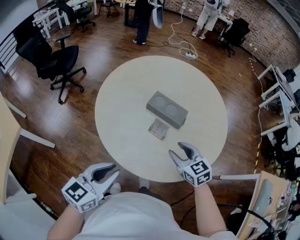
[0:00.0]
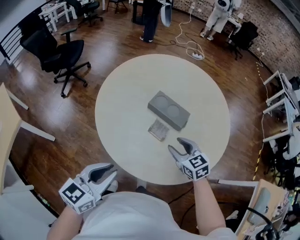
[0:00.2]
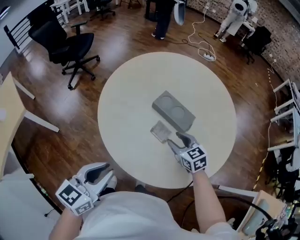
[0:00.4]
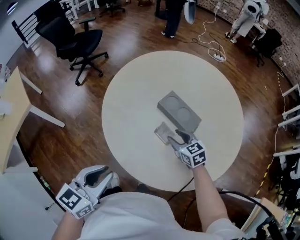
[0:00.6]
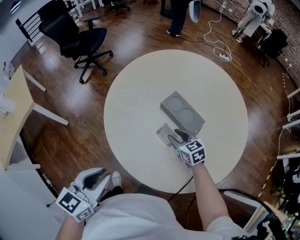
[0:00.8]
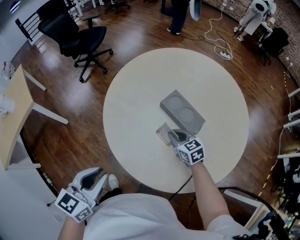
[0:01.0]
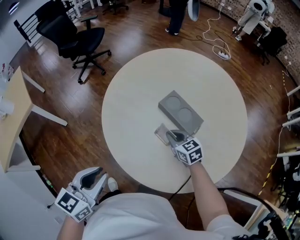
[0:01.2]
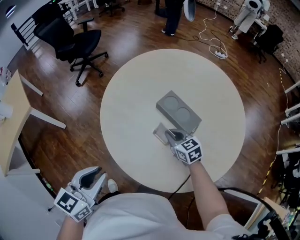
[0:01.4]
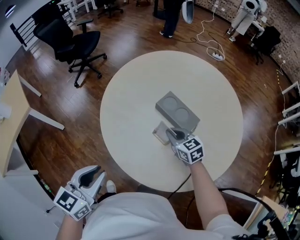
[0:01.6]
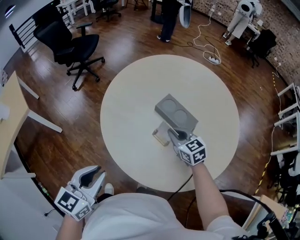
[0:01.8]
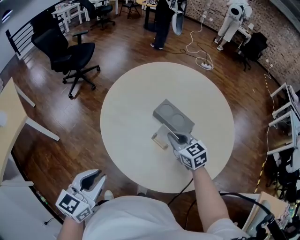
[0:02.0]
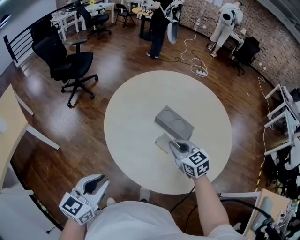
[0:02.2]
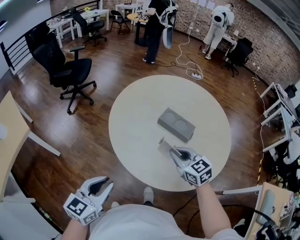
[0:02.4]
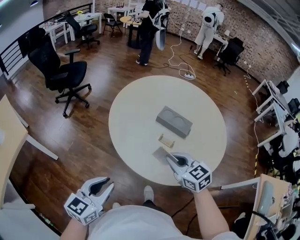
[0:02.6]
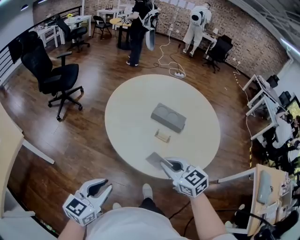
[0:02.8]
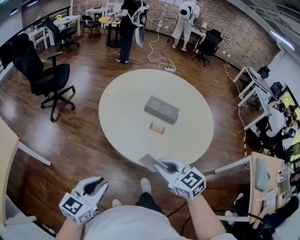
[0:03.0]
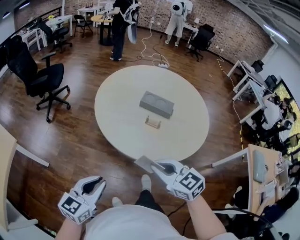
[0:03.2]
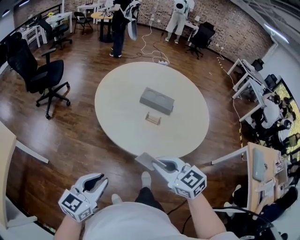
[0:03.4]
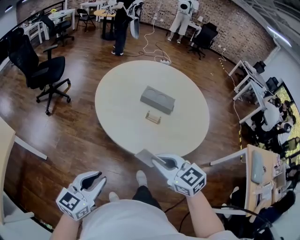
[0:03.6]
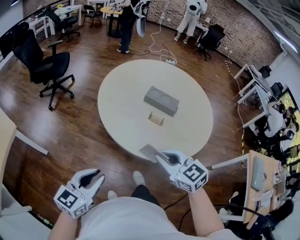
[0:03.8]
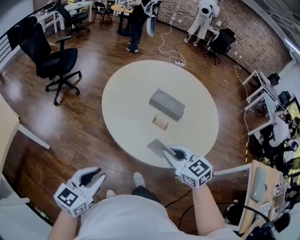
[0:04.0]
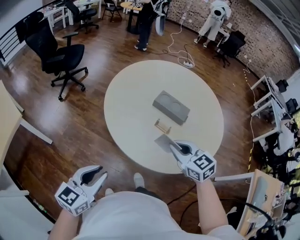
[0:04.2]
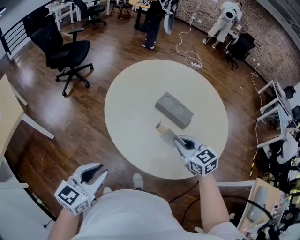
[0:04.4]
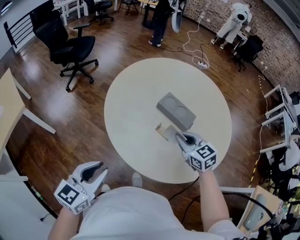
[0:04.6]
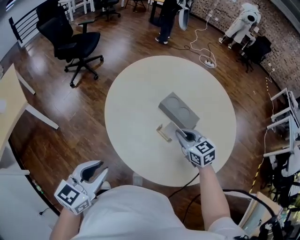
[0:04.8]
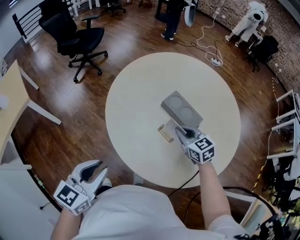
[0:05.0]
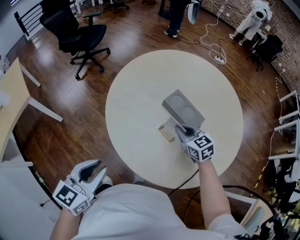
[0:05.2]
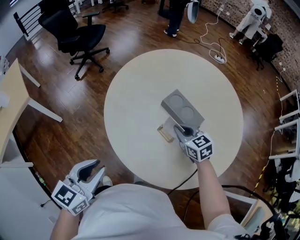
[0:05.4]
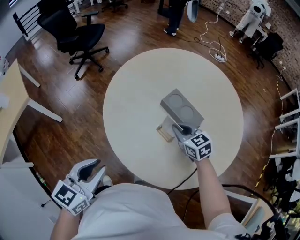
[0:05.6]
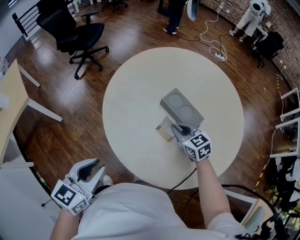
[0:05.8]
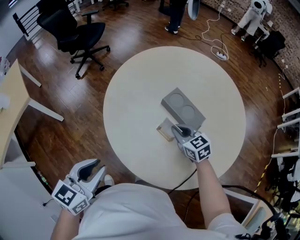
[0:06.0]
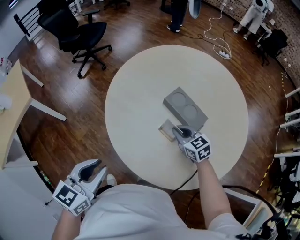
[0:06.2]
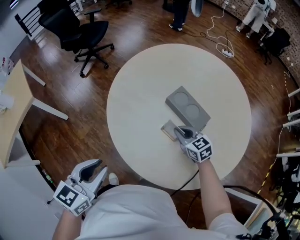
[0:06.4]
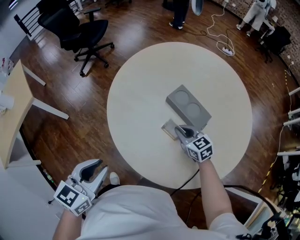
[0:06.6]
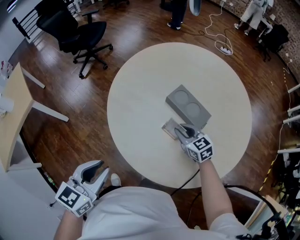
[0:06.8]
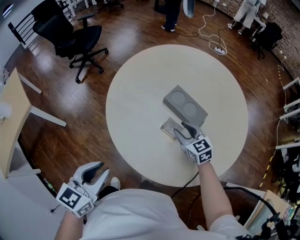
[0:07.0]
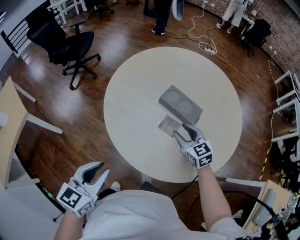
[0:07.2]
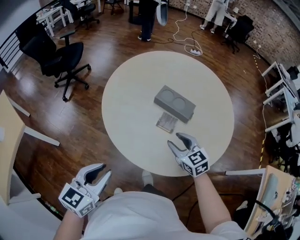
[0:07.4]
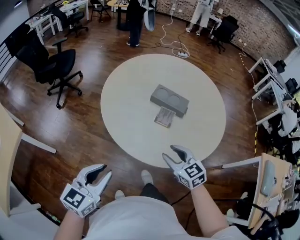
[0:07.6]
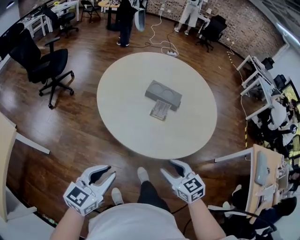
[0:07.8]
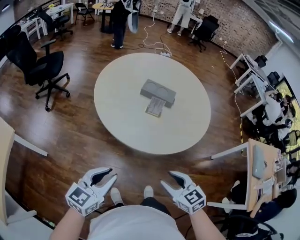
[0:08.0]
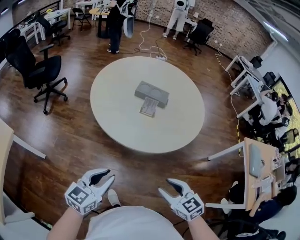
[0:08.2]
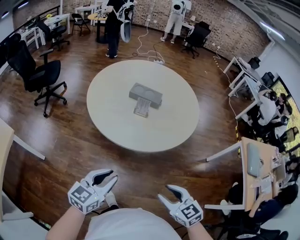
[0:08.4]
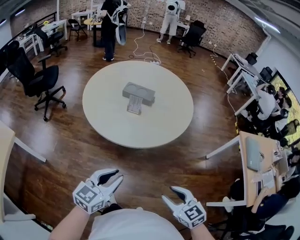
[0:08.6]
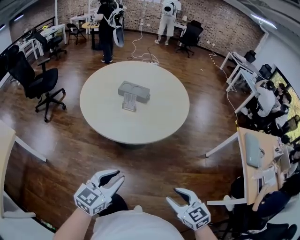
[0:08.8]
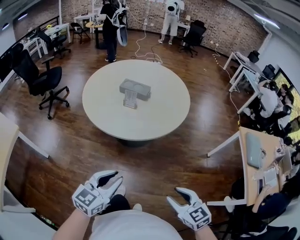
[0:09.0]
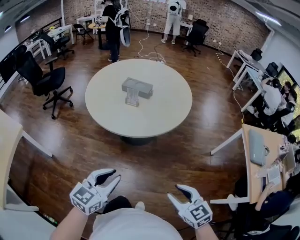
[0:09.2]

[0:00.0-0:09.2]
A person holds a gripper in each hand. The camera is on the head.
0:00.0 to 0:01.6: The right gripper shifts about 15 cm forward and downward, and closes its fingers. The left gripper rotates some 20 degrees.
0:01.6 to 0:03.0: The right gripper shifts approximately 40 cm backward, to the left and upward. The left gripper travels to the left and backward by roughly 20 cm, and turns by approximately 20 degrees.
0:03.0 to 0:04.6: The right gripper moves forward and to the right, roughly 30 cm. The left gripper shifts approximately 15 cm forward and to the right.
0:04.6 to 0:06.2: The left gripper shifts by about 5 cm. Meanwhile the right gripper goes approximately 15 cm downward and forward.
0:06.2 to 0:07.6: The left gripper heads to the left and backward, covering approximately 10 cm, and rotates approximately 20 degrees; the right gripper moves backward, upward and to the left, roughly 25 cm, rotates about 20 degrees, and opens its fingers.
0:07.6 to 0:09.2: Both grippers travel together backward and to the right, about 40 cm.

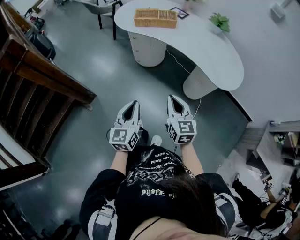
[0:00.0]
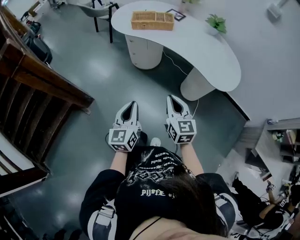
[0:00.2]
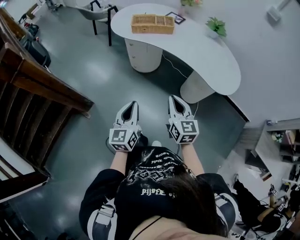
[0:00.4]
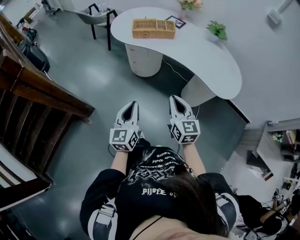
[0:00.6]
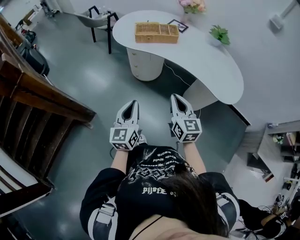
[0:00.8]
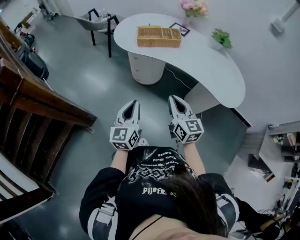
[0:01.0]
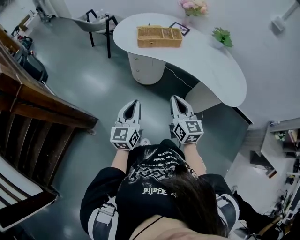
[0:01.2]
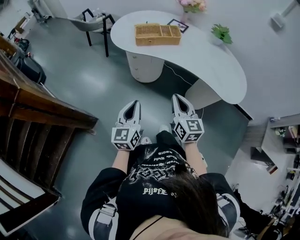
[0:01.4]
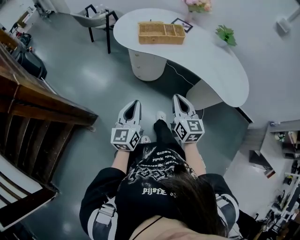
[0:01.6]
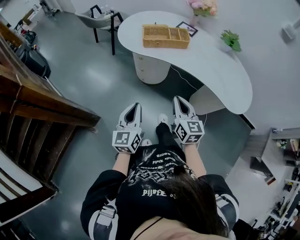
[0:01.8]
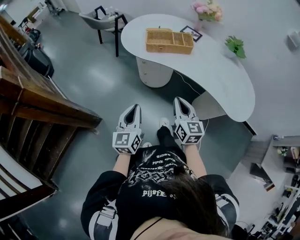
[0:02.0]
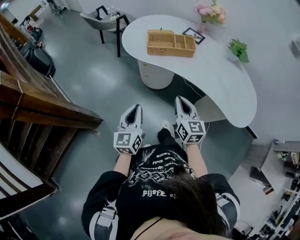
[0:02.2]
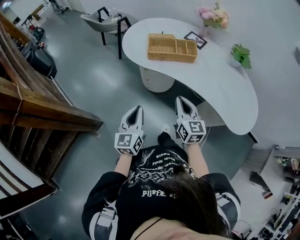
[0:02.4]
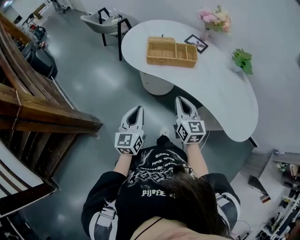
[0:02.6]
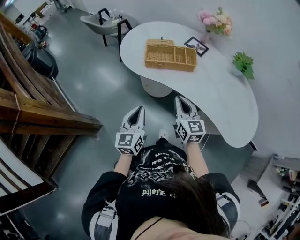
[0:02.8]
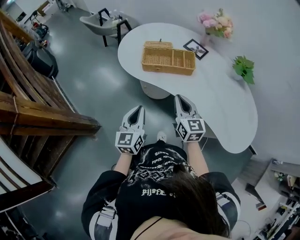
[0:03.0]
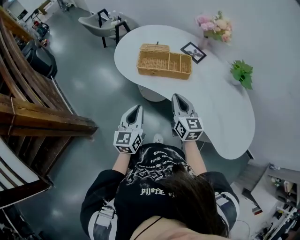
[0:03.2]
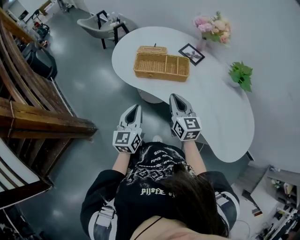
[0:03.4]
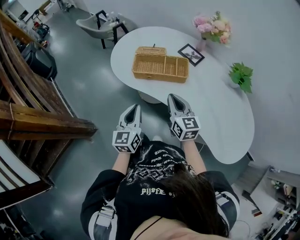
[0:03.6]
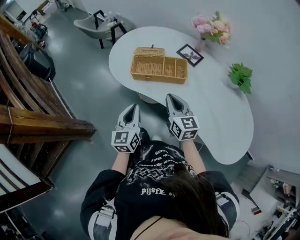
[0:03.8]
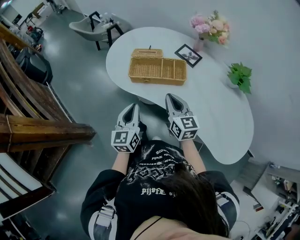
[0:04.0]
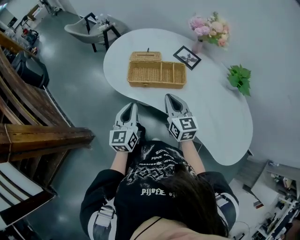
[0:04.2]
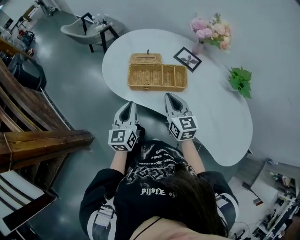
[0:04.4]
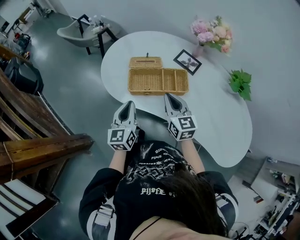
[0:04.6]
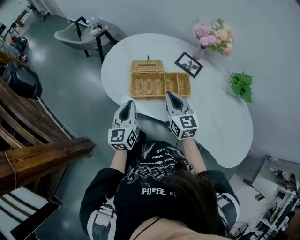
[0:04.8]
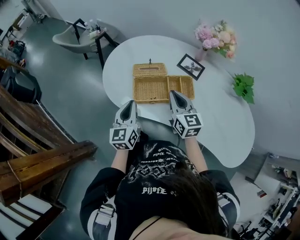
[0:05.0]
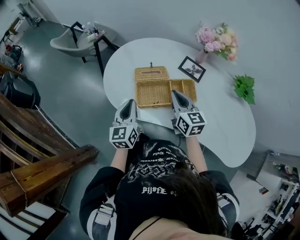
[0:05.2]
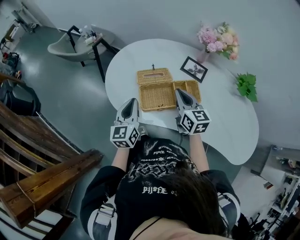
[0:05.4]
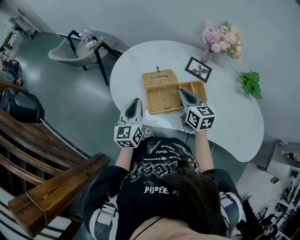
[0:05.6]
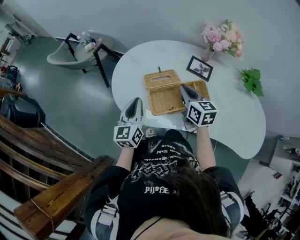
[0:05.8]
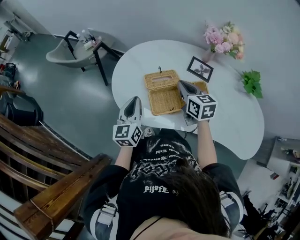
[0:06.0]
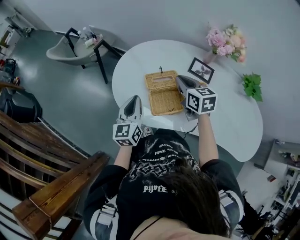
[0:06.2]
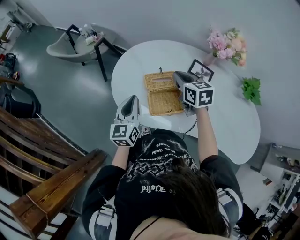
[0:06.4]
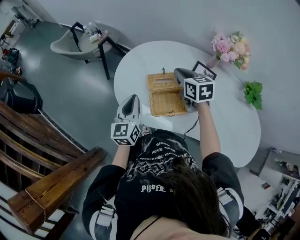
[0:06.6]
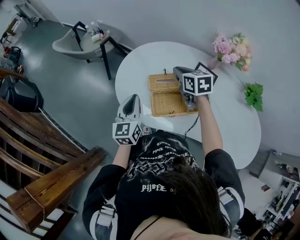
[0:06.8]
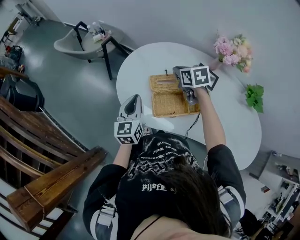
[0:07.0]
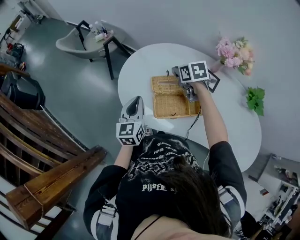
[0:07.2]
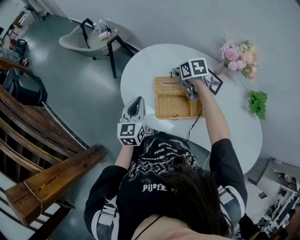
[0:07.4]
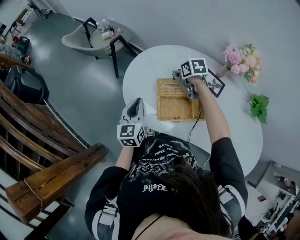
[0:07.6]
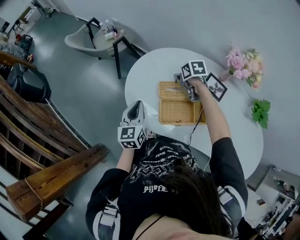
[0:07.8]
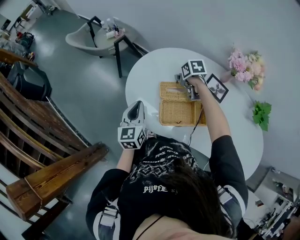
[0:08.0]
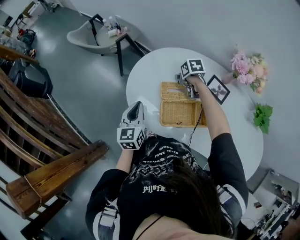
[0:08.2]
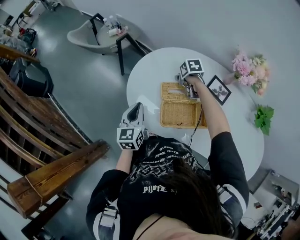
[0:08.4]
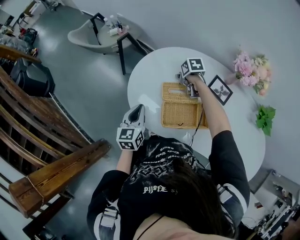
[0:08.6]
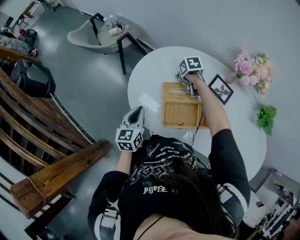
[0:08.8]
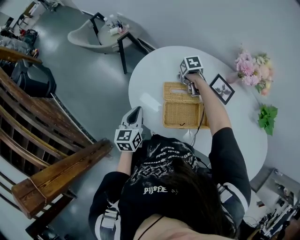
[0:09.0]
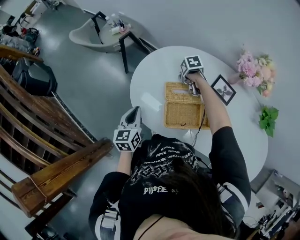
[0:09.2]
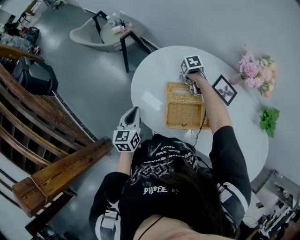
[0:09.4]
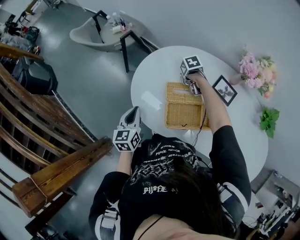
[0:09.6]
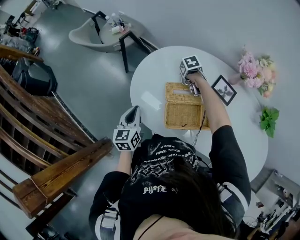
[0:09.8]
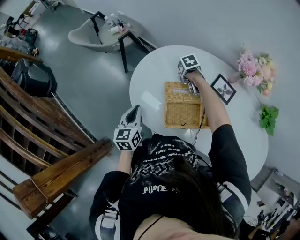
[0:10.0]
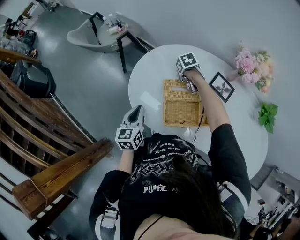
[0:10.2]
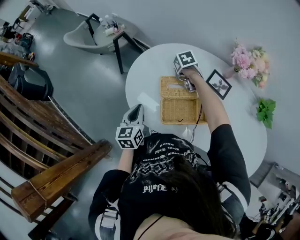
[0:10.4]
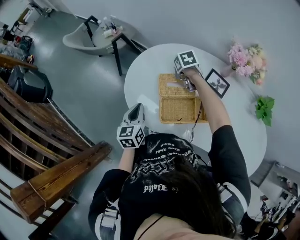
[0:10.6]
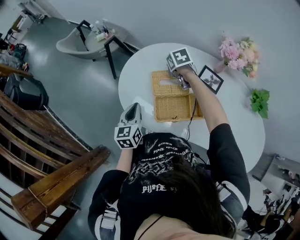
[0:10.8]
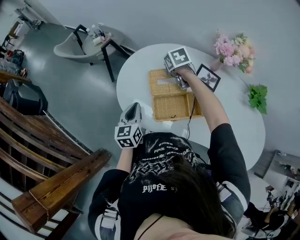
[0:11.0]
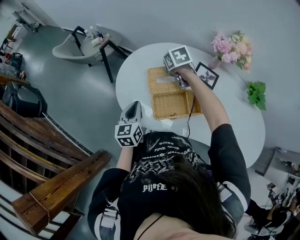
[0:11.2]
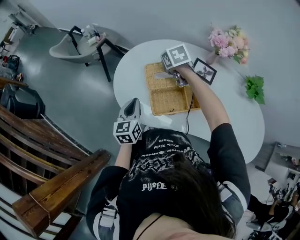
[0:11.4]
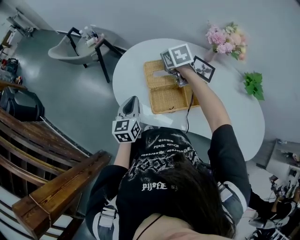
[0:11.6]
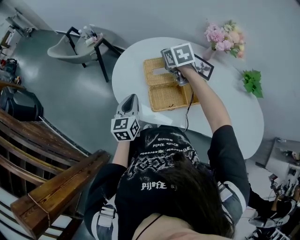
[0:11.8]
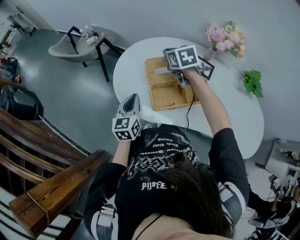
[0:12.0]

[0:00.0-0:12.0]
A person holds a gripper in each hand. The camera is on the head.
0:00.0 to 0:01.6: Both grippers travel together forward and to the left, roughly 20 cm.
0:01.6 to 0:03.0: Both grippers move forward, roughly 25 cm.
0:03.0 to 0:04.4: Both grippers travel together forward, about 15 cm.
0:04.4 to 0:06.0: The two grippers go some 25 cm forward and to the left.
0:06.0 to 0:07.6: The right gripper shifts about 15 cm forward and downward, turns by some 30 degrees, and opens up.
0:07.6 to 0:09.0: The right gripper shifts roughly 10 cm downward.
0:09.0 to 0:10.4: The right gripper closes up.
0:10.4 to 0:12.0: The right gripper goes some 15 cm upward, and turns by approximately 30 degrees.

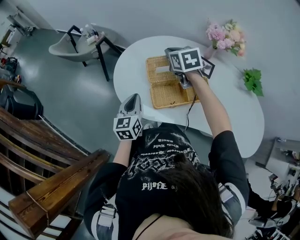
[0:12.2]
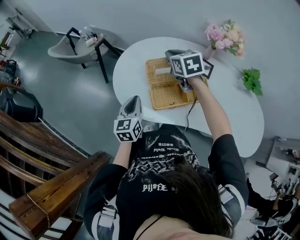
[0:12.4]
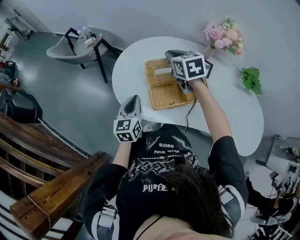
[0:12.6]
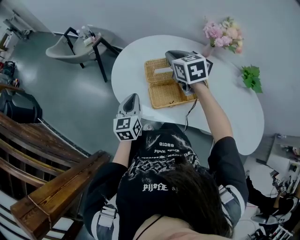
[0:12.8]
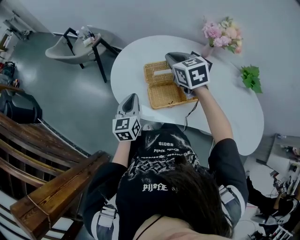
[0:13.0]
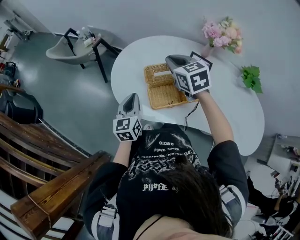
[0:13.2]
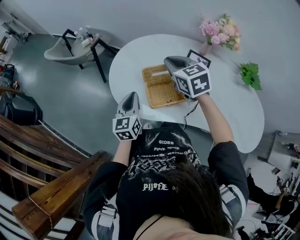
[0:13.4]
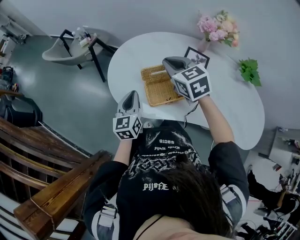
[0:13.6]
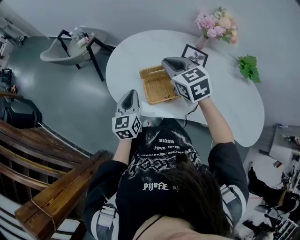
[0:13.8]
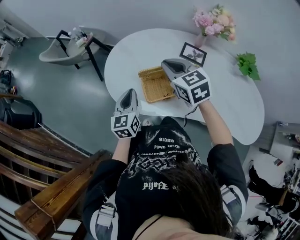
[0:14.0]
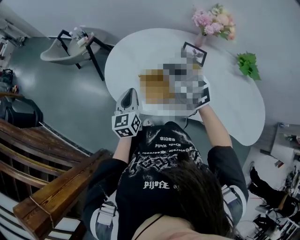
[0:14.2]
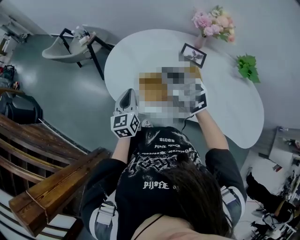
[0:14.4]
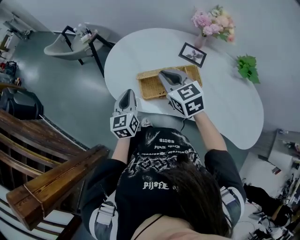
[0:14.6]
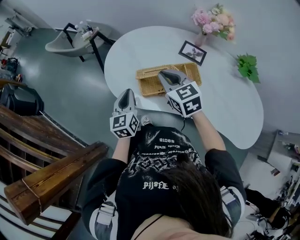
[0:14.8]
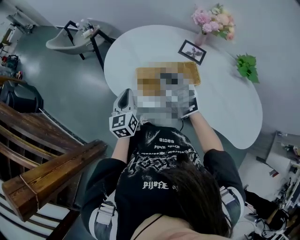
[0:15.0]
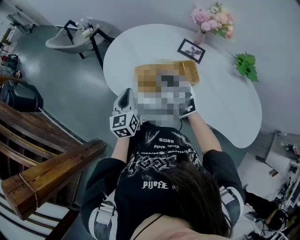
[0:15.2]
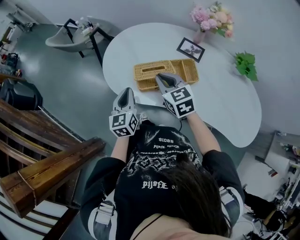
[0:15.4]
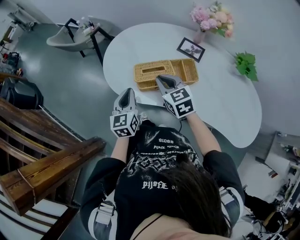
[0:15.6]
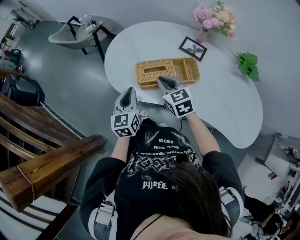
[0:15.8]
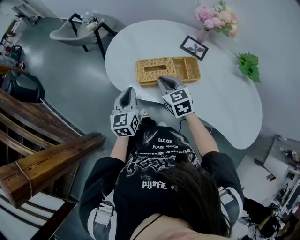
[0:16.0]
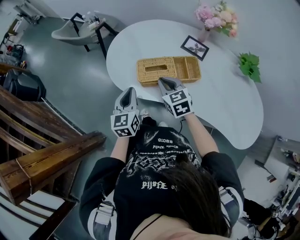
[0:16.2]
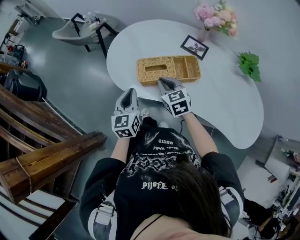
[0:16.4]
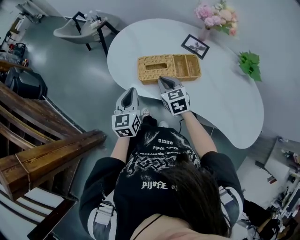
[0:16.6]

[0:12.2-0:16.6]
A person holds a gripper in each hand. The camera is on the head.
0:12.2 to 0:13.6: The right gripper heads backward, covering some 10 cm.
0:13.6 to 0:15.2: The left gripper is displaced backward by about 5 cm. Meanwhile the right gripper is displaced backward by approximately 10 cm.
0:15.2 to 0:16.6: The left gripper heads backward, covering some 5 cm. The right gripper goes about 10 cm downward.
